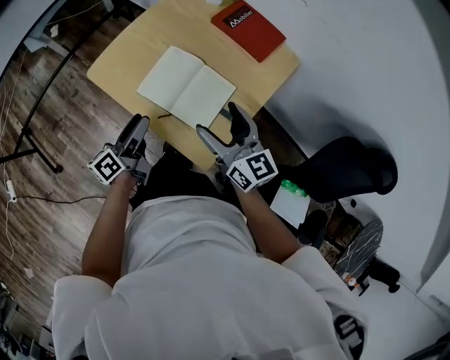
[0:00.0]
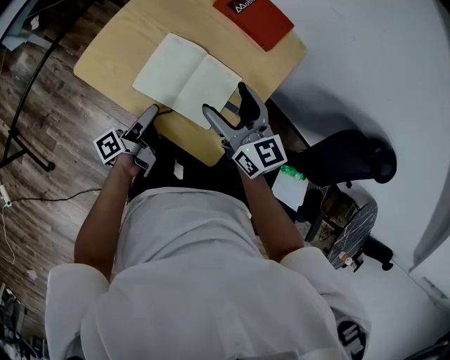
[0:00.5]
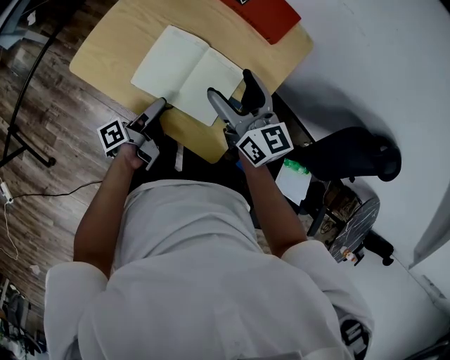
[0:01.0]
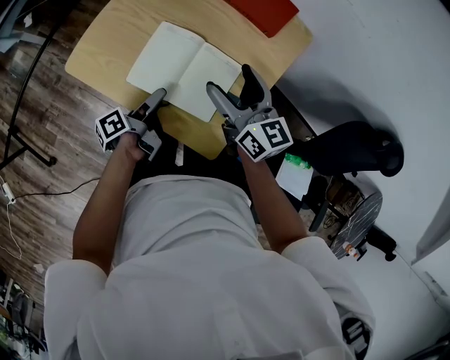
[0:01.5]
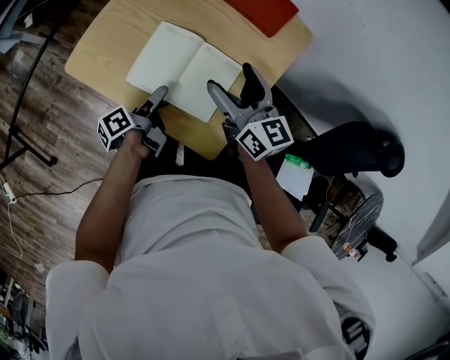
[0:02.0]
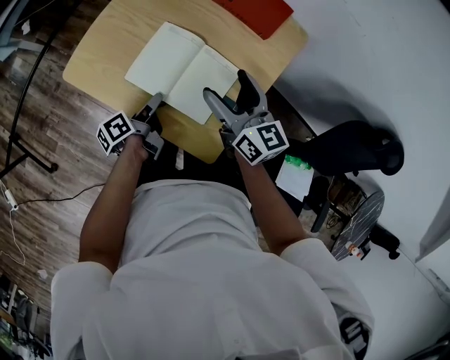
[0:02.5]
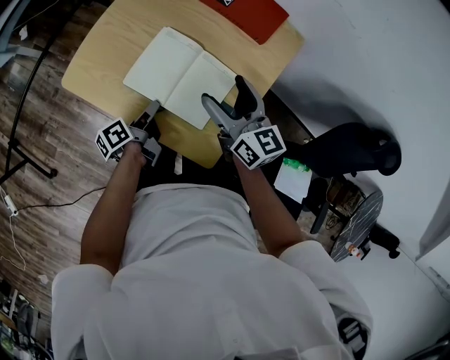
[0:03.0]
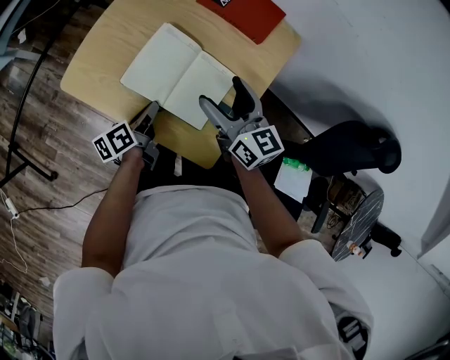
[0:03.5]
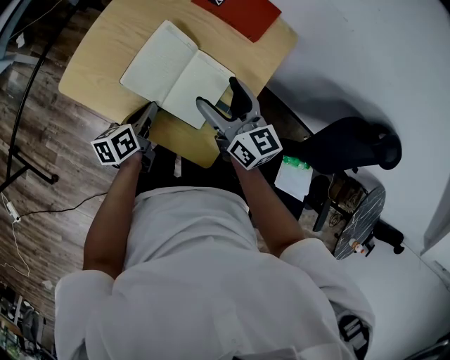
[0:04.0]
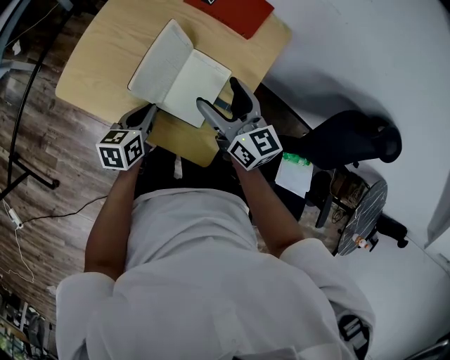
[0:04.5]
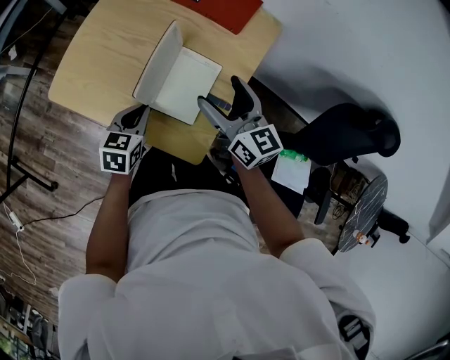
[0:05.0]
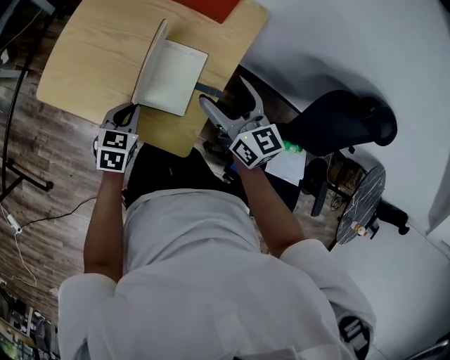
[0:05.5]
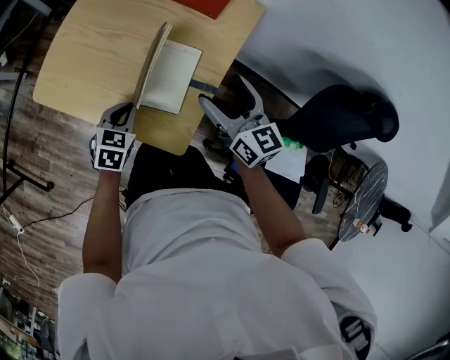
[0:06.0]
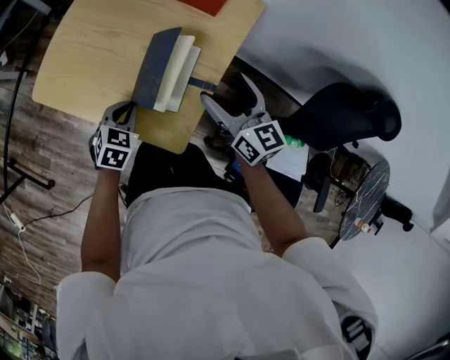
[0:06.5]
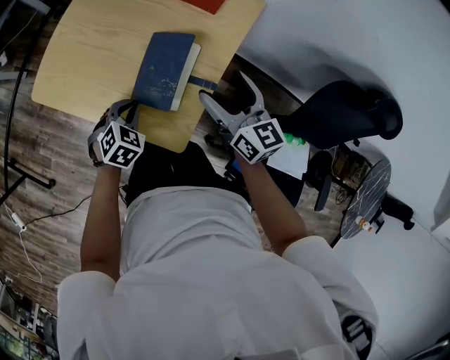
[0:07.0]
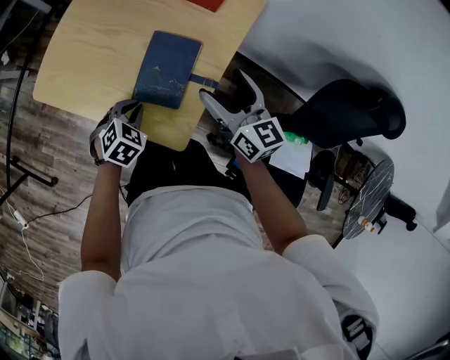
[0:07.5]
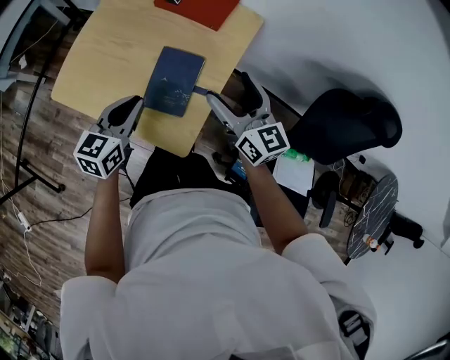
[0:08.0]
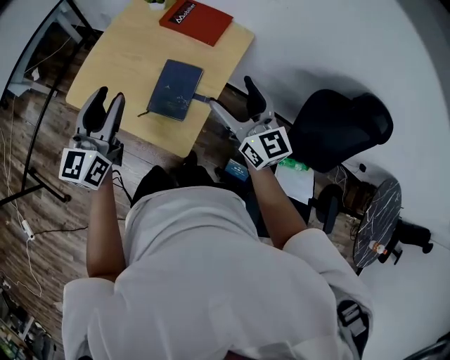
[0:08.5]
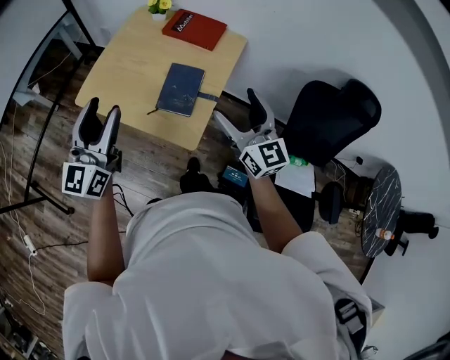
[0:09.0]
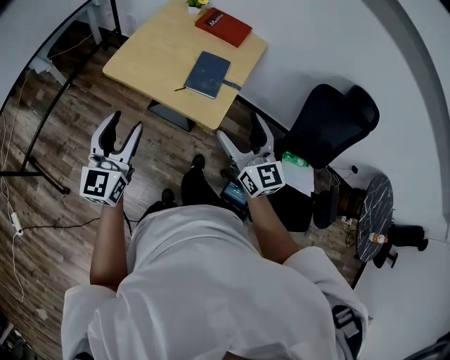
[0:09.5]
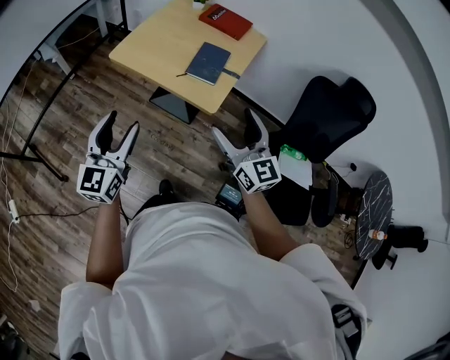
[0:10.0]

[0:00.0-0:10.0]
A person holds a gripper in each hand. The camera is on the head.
0:00.0 to 0:02.0: The left gripper heads downward, to the right and forward, covering about 15 cm, and turns by approximately 40 degrees; the right gripper travels forward by approximately 10 cm.
0:02.0 to 0:04.0: The left gripper twists about 40 degrees clockwise, seen from behind, and closes its fingers.
0:04.0 to 0:06.0: The right gripper shifts about 10 cm to the right, while the left gripper is displaced to the right by about 5 cm, and twists approximately 50 degrees clockwise, seen from behind.
0:06.0 to 0:08.0: The left gripper travels upward by about 15 cm, and turns by some 30 degrees.
0:08.0 to 0:10.0: The left gripper heads backward, to the left and upward, covering some 35 cm, changes its angle by approximately 30 degrees, and opens. Meanwhile the right gripper travels backward by approximately 30 cm.

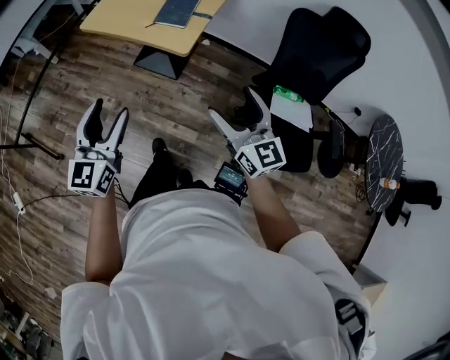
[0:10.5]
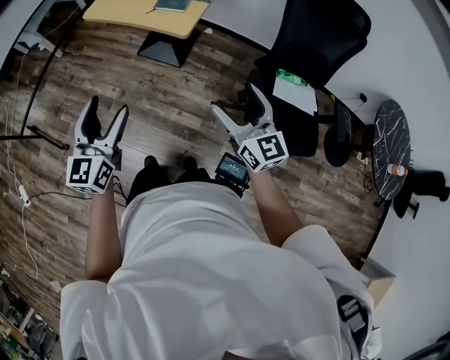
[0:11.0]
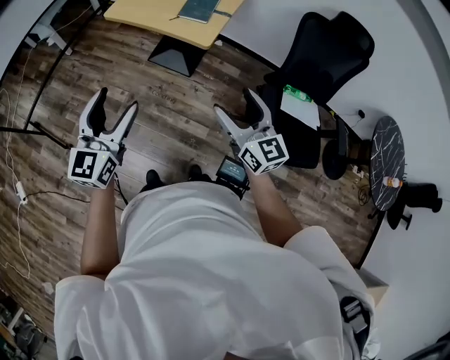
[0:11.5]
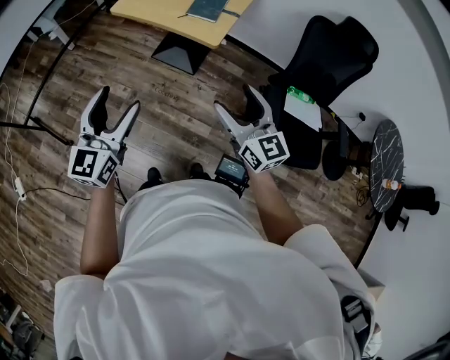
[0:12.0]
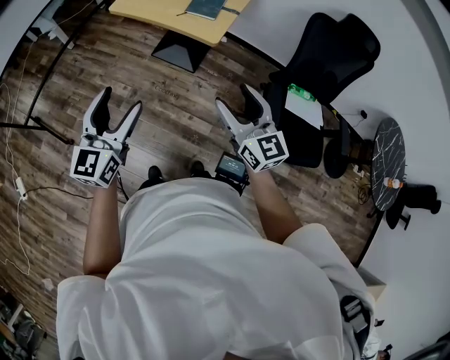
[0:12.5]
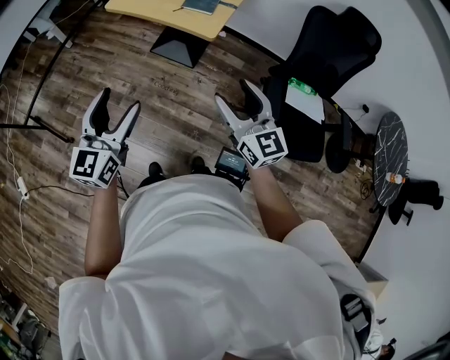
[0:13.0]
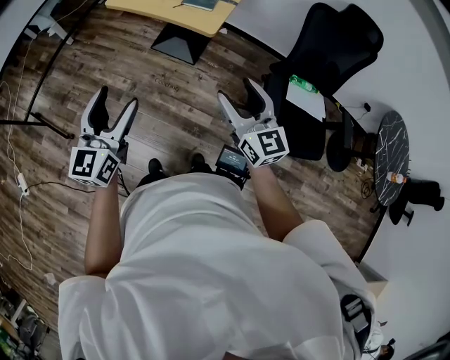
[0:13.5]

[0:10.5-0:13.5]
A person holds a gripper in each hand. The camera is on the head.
0:10.5 to 0:12.0: The grippers both shift to the left by roughly 10 cm.
0:12.0 to 0:13.5: The grippers stay close to where they were, moving slightly.

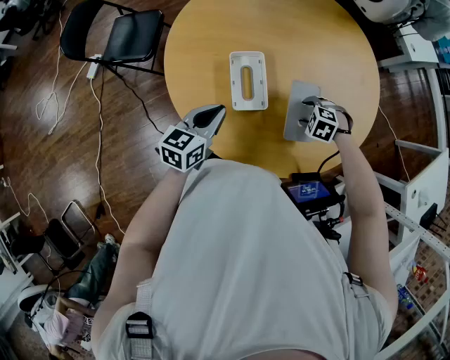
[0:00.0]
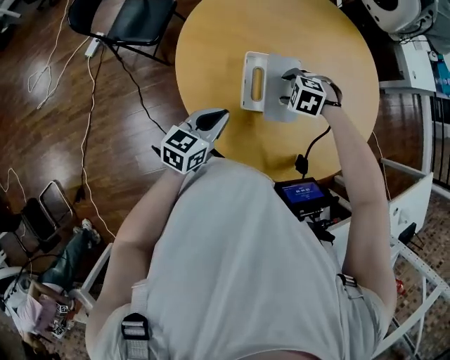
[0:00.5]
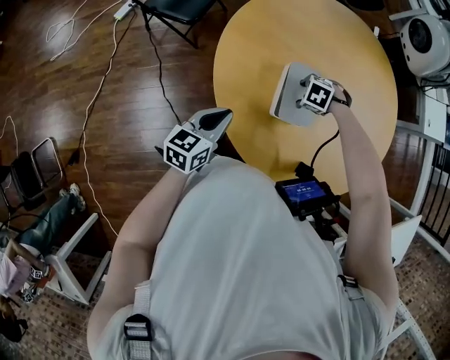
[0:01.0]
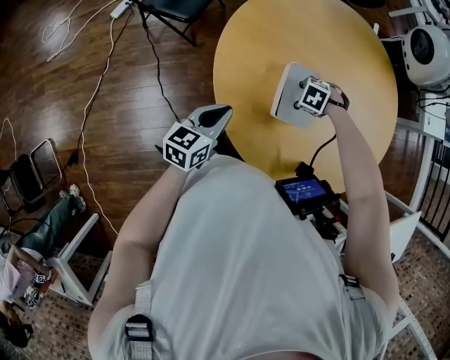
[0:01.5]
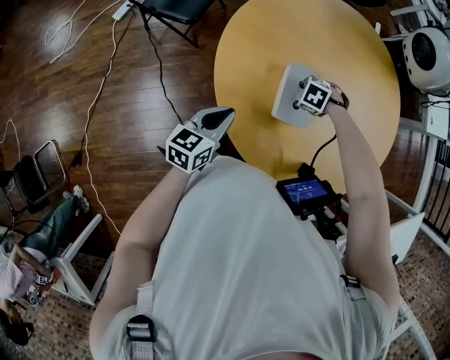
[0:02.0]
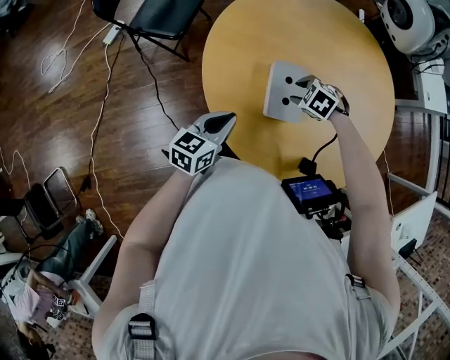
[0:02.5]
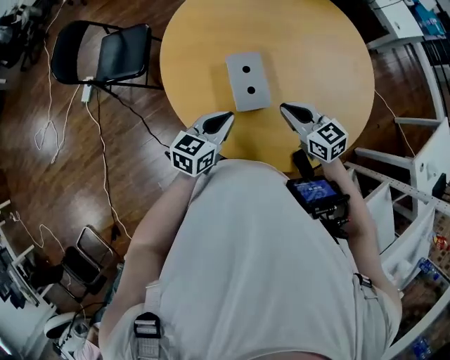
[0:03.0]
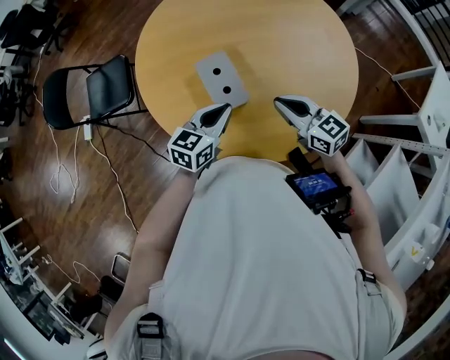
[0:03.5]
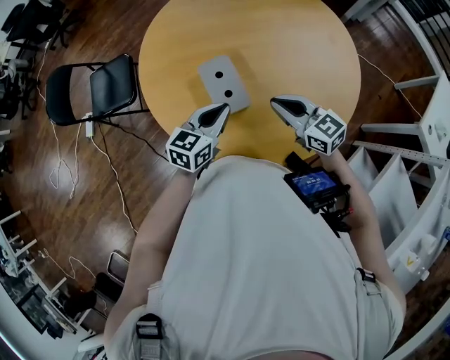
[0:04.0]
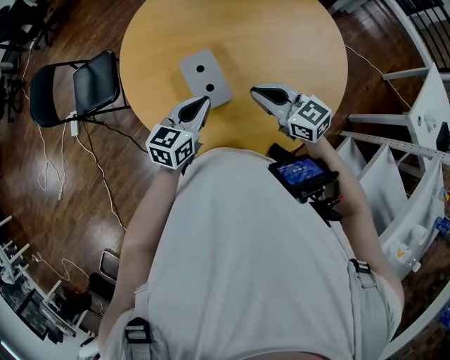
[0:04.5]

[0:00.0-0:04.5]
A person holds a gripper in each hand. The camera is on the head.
0:00.0 to 0:02.0: The right gripper travels upward and back again, some 10 cm each way, while the left gripper changes place by approximately 15 cm.
0:02.0 to 0:04.5: The right gripper shifts some 20 cm upward, angles its fingers upward, by roughly 70 degrees, and closes; the left gripper changes place by roughly 20 cm, and turns by roughly 30 degrees.

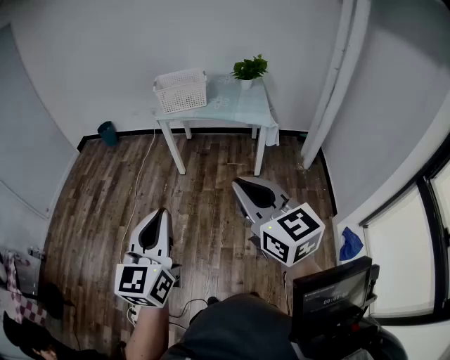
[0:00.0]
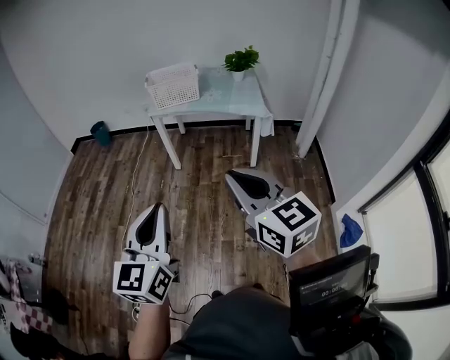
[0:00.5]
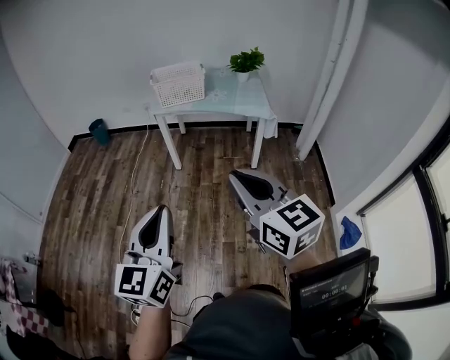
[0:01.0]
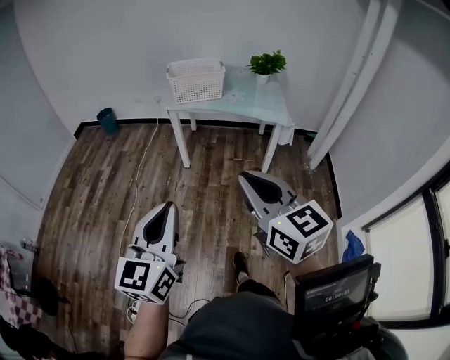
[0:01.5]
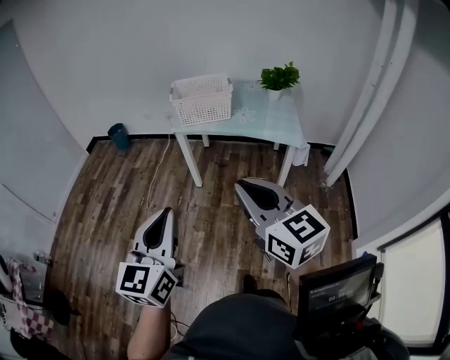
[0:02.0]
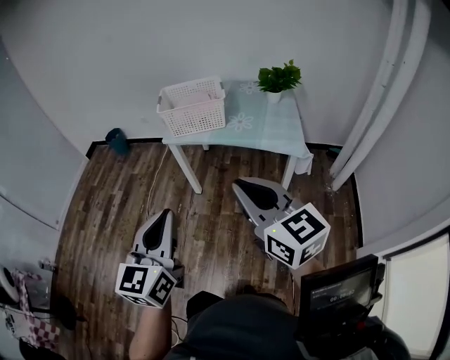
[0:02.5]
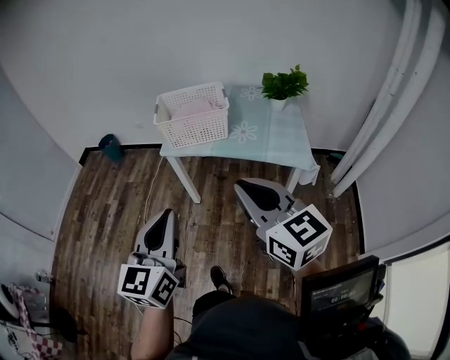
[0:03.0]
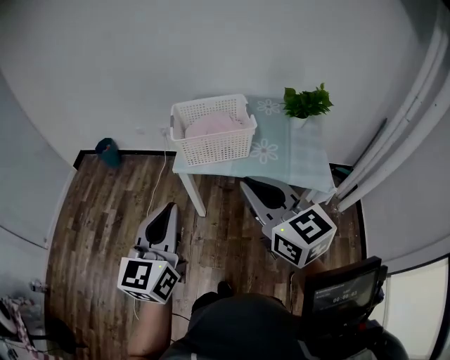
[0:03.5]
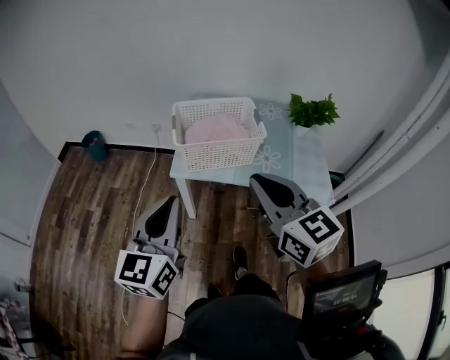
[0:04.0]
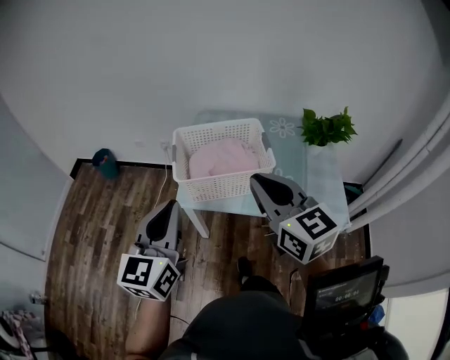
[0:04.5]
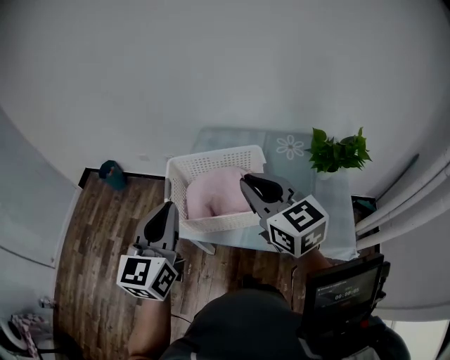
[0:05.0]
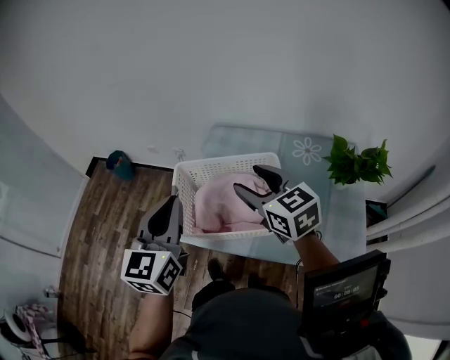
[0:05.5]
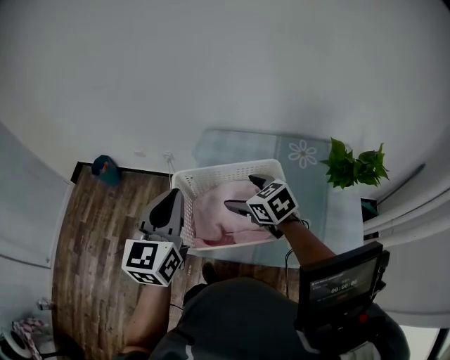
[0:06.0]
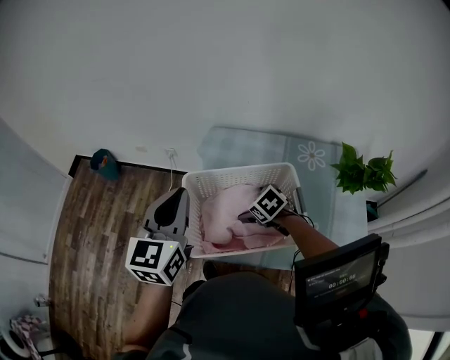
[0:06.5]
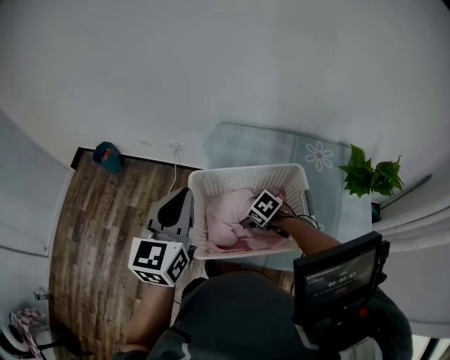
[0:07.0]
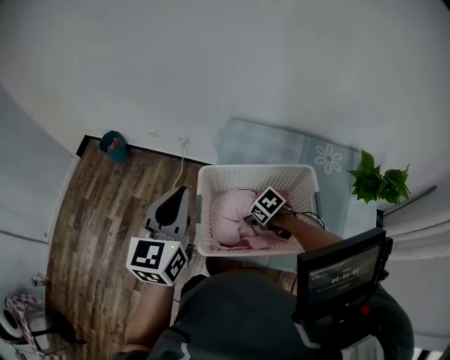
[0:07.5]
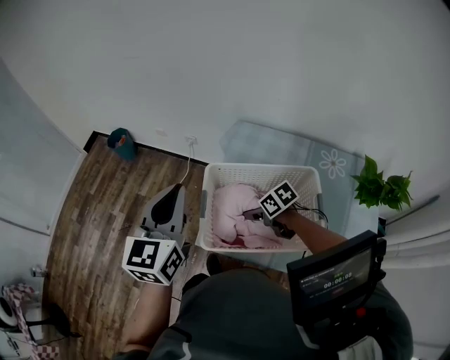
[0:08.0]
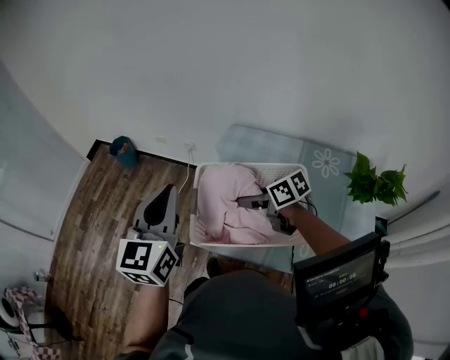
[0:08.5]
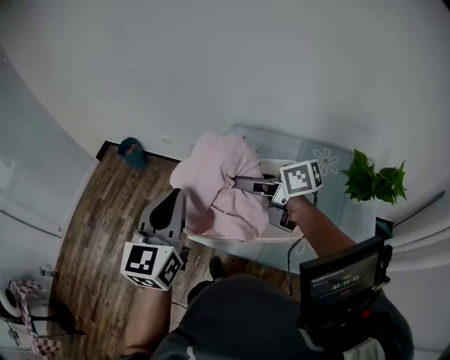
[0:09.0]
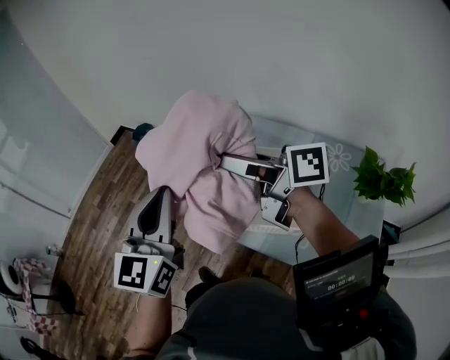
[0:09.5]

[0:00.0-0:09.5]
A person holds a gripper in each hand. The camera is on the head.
0:00.0 to 0:02.0: The two grippers go roughly 20 cm forward.
0:02.0 to 0:04.0: Both grippers are carried forward, approximately 40 cm.
0:04.0 to 0:05.5: The two grippers go approximately 35 cm forward. The right gripper opens.
0:05.5 to 0:07.5: The left gripper shifts about 15 cm forward and to the left, while the right gripper moves downward, approximately 30 cm, points its fingers approximately 50 degrees further downward, and opens, then closes again.
0:07.5 to 0:09.5: The left gripper is displaced backward, upward and to the left by roughly 20 cm, while the right gripper shifts some 40 cm upward, and tilts its fingers approximately 70 degrees upward.
